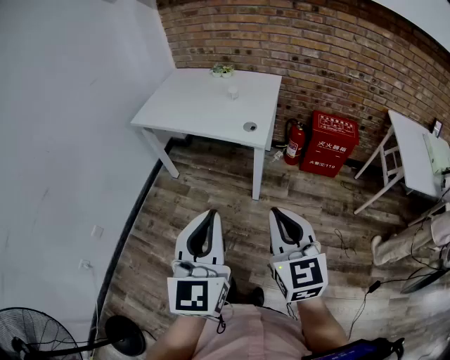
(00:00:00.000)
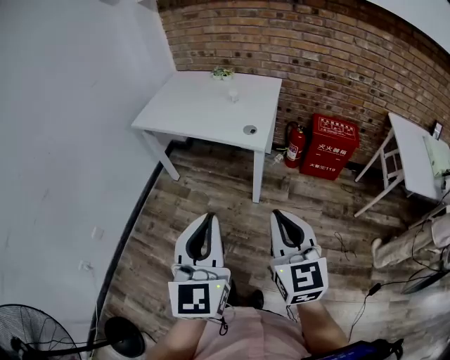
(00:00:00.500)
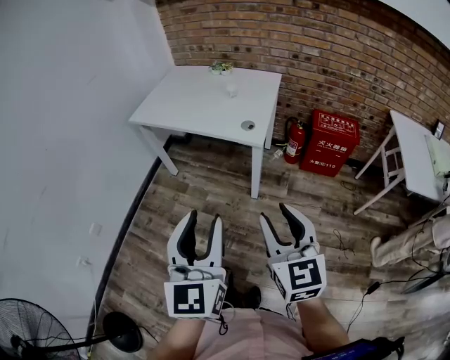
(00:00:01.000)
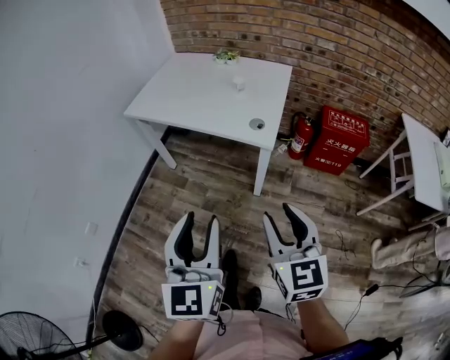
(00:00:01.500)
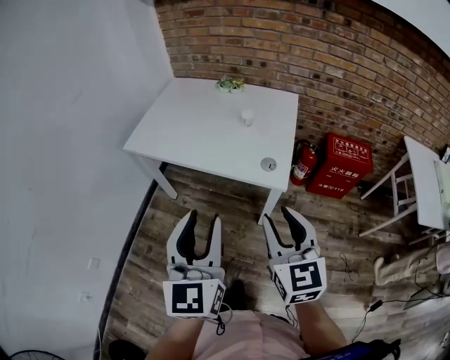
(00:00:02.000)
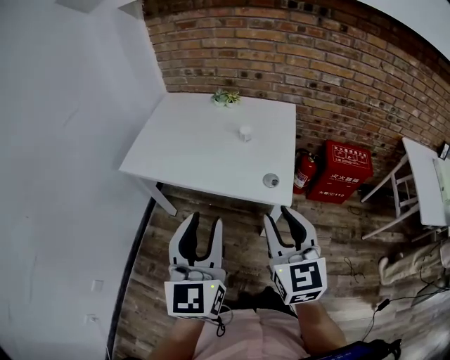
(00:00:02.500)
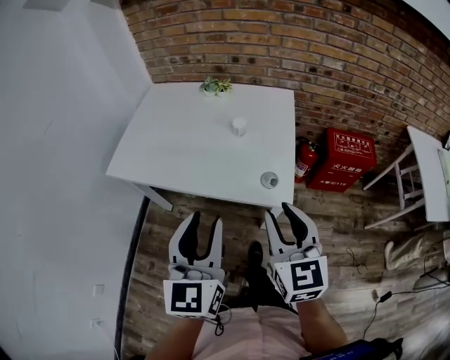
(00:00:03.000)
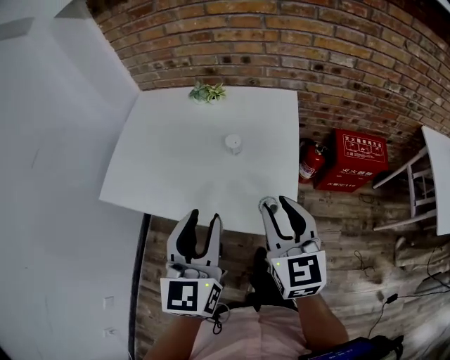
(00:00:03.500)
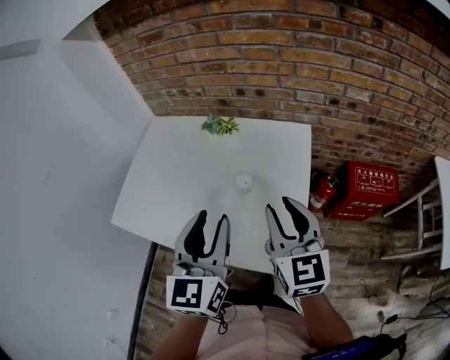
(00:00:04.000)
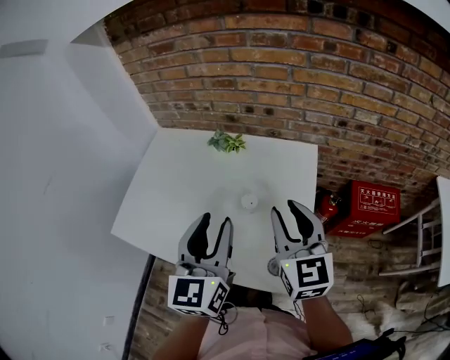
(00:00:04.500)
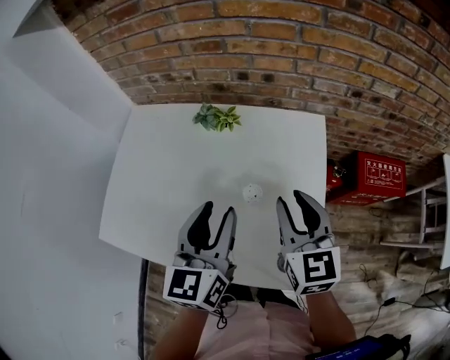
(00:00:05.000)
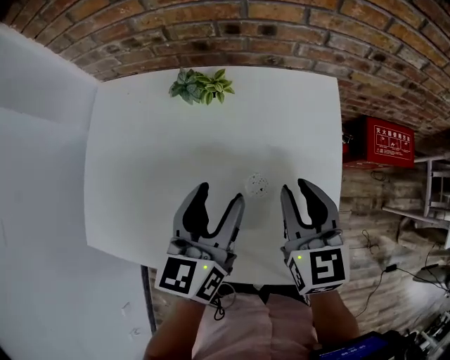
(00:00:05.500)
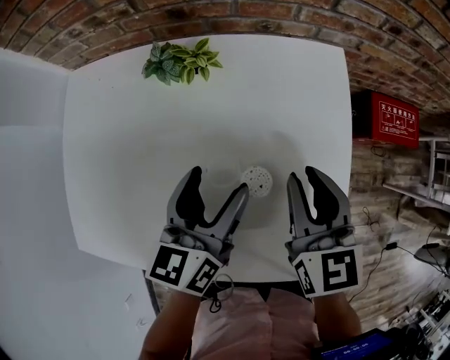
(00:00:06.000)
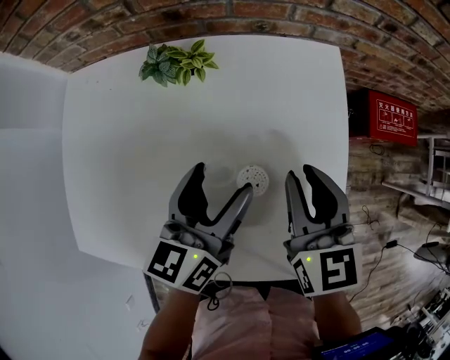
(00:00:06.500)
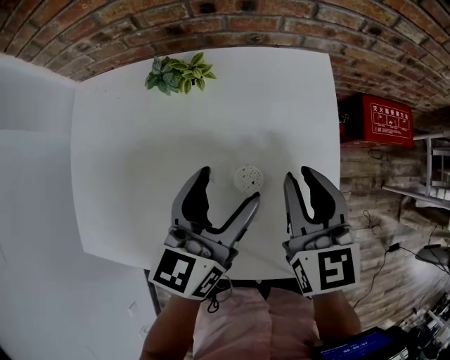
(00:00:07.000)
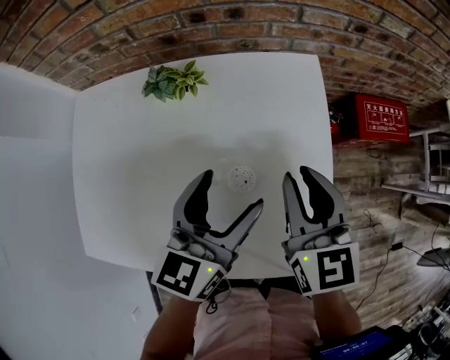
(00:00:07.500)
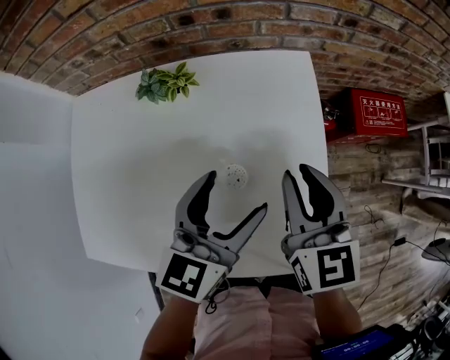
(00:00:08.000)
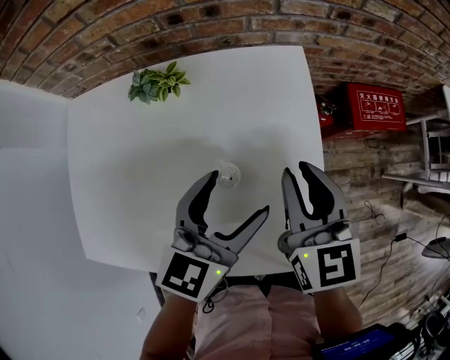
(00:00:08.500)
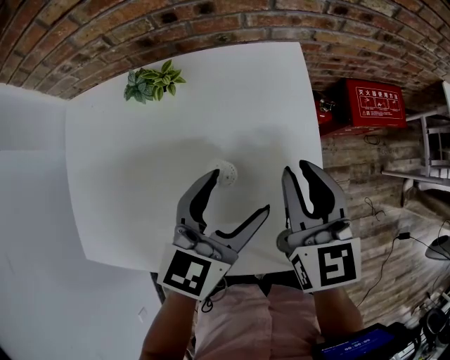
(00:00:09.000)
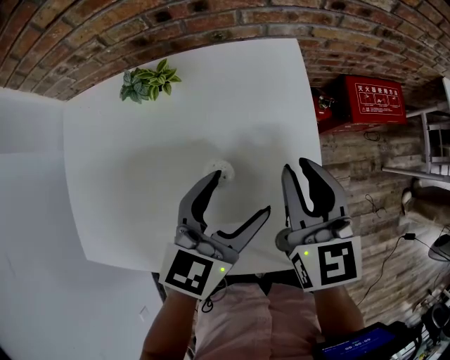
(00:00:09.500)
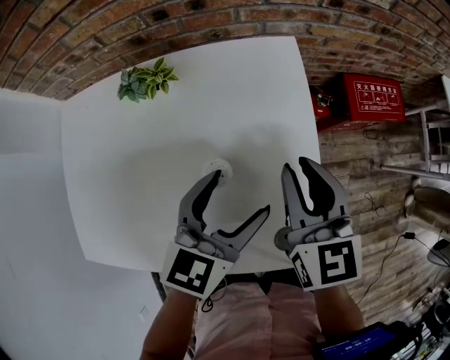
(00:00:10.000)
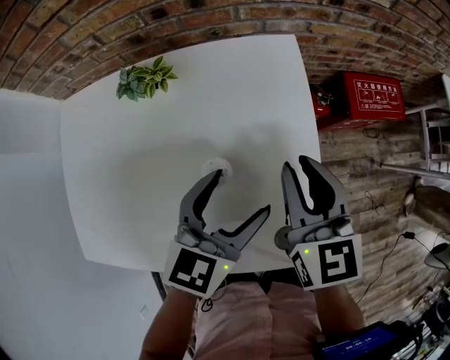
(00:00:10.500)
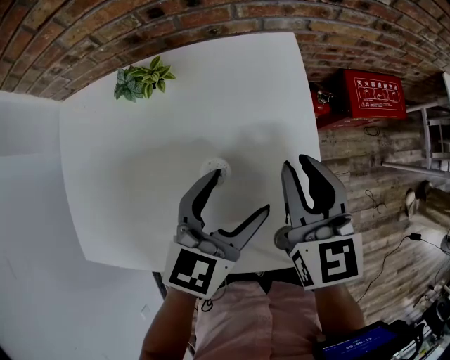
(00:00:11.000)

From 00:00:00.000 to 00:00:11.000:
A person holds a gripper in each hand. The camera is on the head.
From 00:00:00.000 to 00:00:02.000: Both grippers travel together forward, approximately 25 cm. The right gripper opens up, while the left gripper opens up.
From 00:00:02.000 to 00:00:03.500: Both grippers move forward, approximately 25 cm.
From 00:00:03.500 to 00:00:05.500: The right gripper moves forward, about 25 cm. Meanwhile the left gripper travels forward and downward by some 30 cm, and rotates some 20 degrees.
From 00:00:05.500 to 00:00:07.500: The left gripper is displaced to the right by approximately 5 cm.
From 00:00:07.500 to 00:00:09.000: The left gripper heads to the right, covering approximately 5 cm.
From 00:00:09.000 to 00:00:11.000: There are only small adjustments of the grippers.

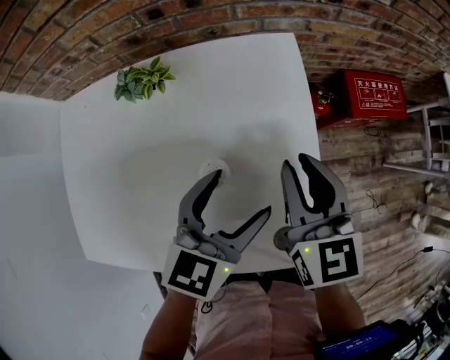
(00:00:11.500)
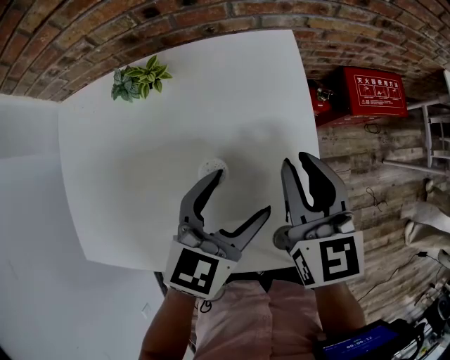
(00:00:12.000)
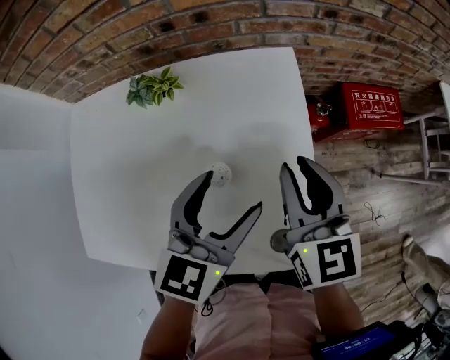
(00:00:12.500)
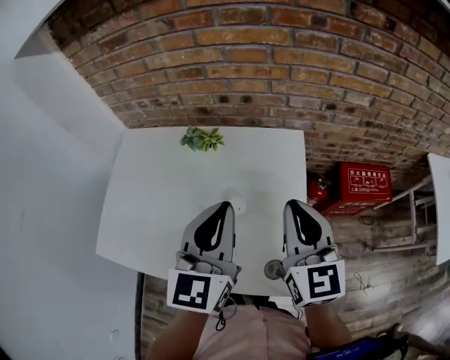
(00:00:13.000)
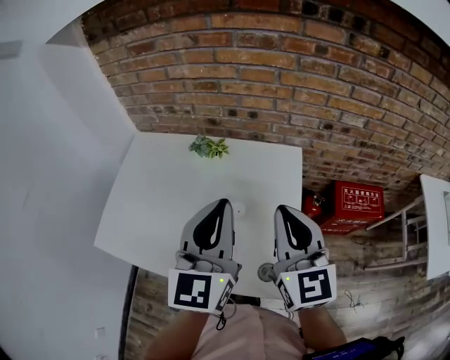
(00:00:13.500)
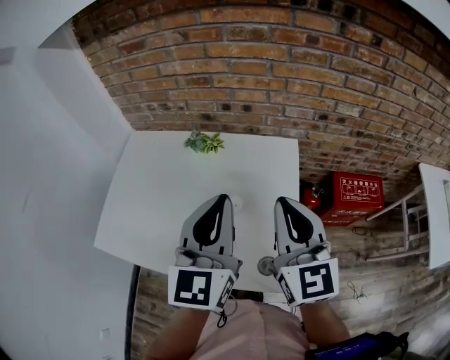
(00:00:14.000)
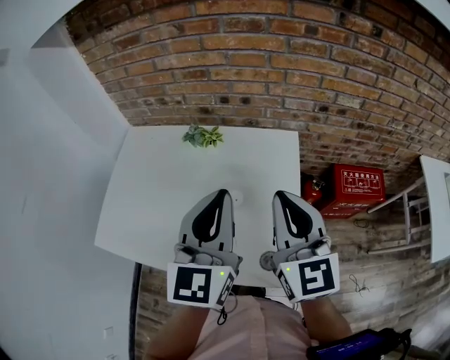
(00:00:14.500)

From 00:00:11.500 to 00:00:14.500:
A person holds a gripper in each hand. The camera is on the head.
From 00:00:11.500 to 00:00:13.000: The grippers both shift upward by roughly 15 cm. The left gripper rotates some 40 degrees, and closes up.
From 00:00:13.000 to 00:00:14.500: The right gripper travels upward by about 5 cm. Meanwhile the left gripper changes place by about 5 cm.

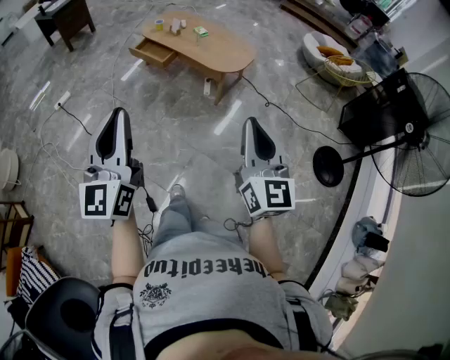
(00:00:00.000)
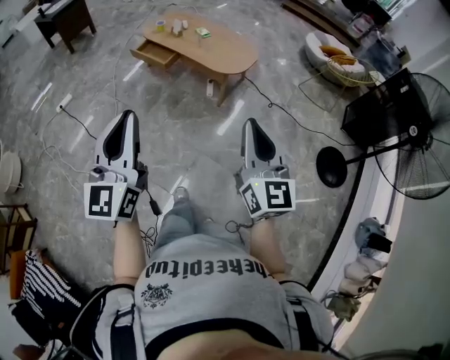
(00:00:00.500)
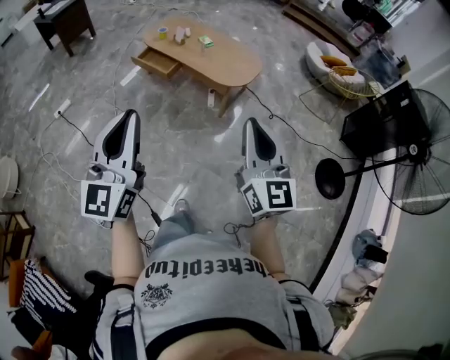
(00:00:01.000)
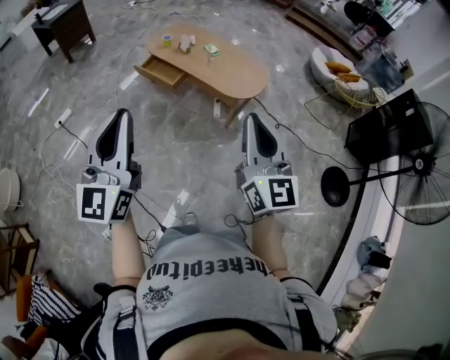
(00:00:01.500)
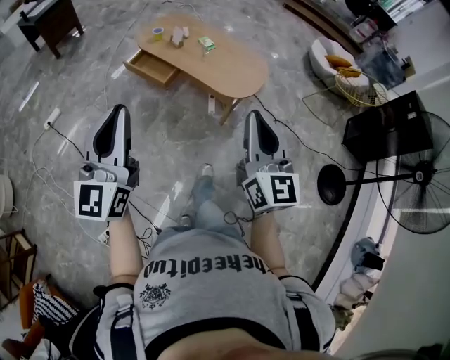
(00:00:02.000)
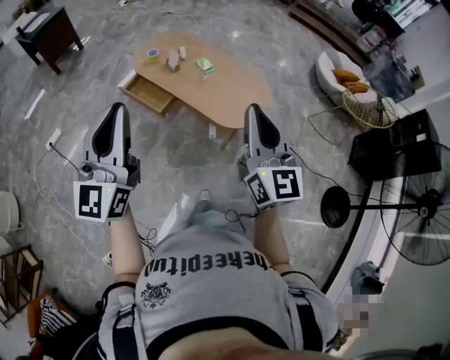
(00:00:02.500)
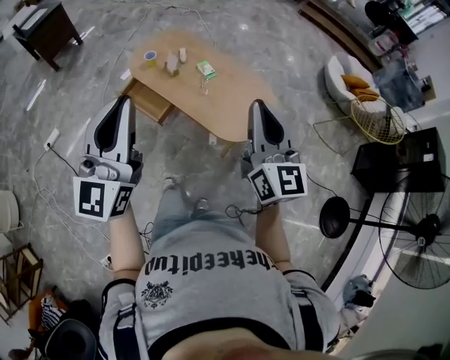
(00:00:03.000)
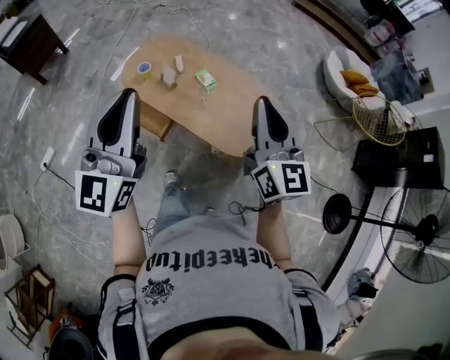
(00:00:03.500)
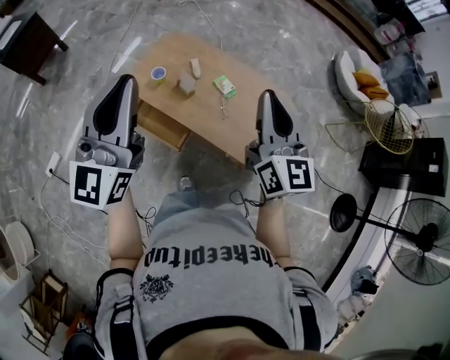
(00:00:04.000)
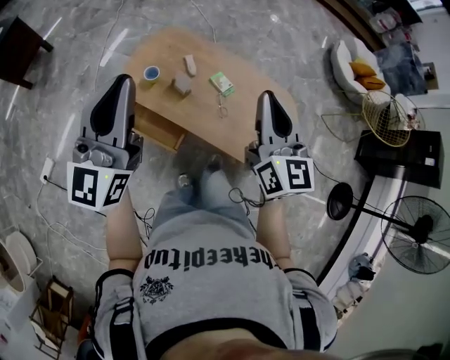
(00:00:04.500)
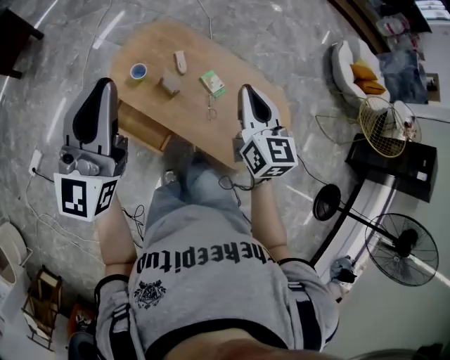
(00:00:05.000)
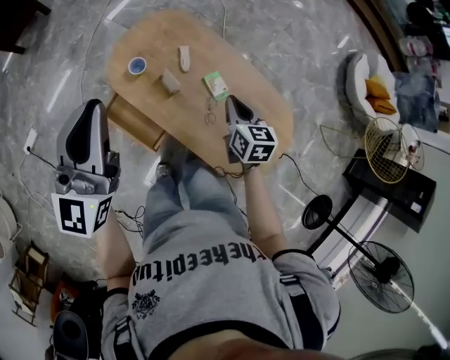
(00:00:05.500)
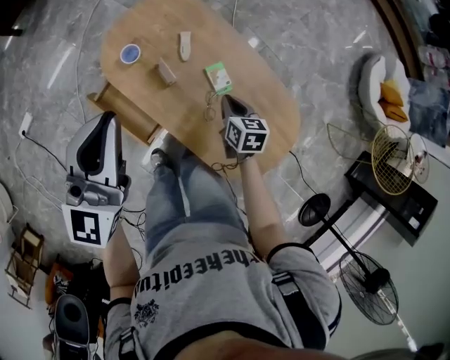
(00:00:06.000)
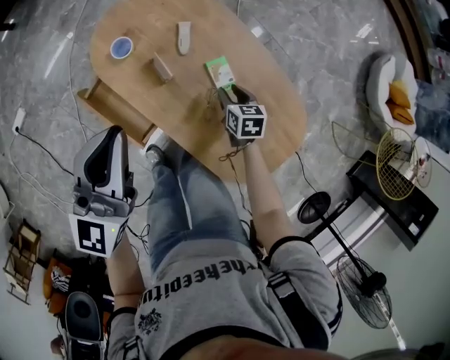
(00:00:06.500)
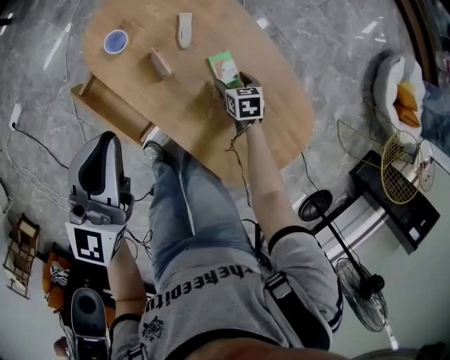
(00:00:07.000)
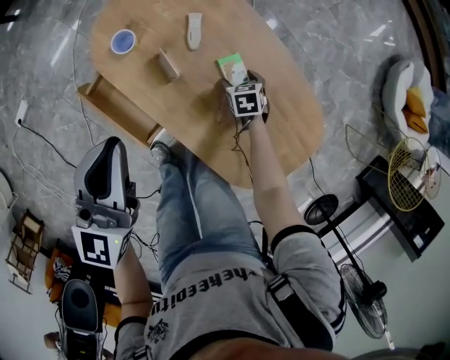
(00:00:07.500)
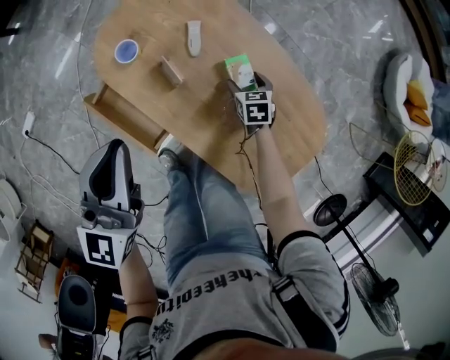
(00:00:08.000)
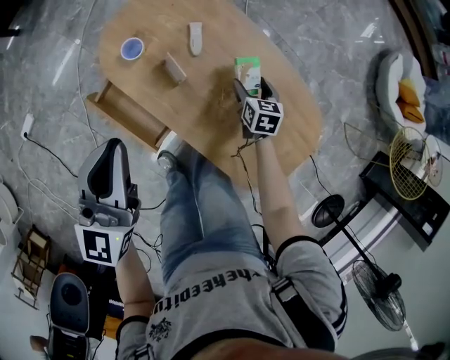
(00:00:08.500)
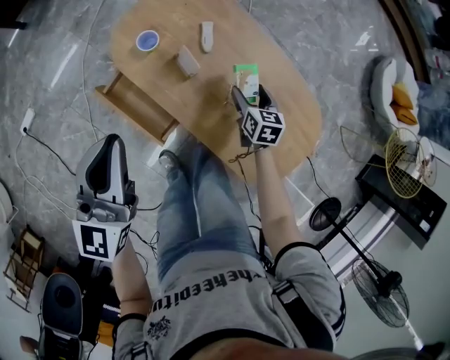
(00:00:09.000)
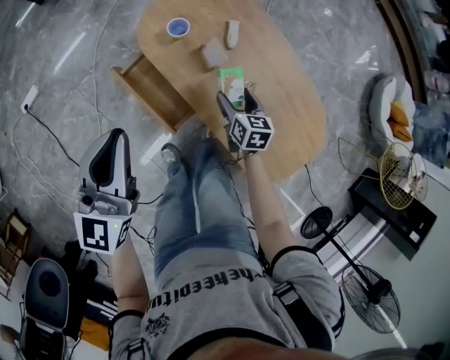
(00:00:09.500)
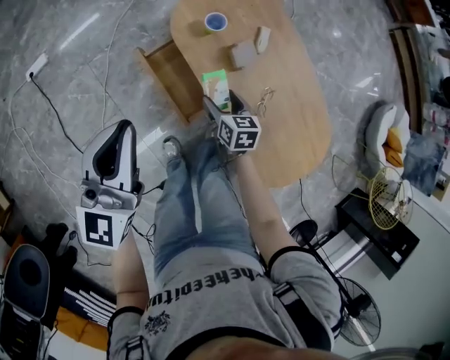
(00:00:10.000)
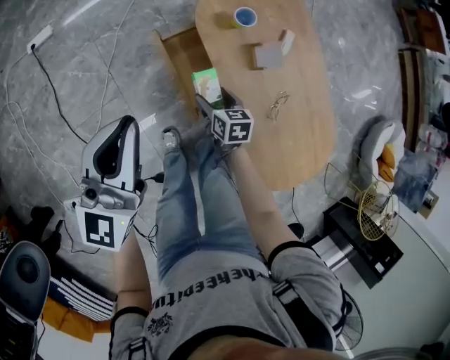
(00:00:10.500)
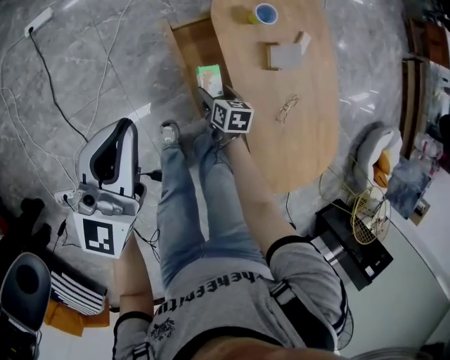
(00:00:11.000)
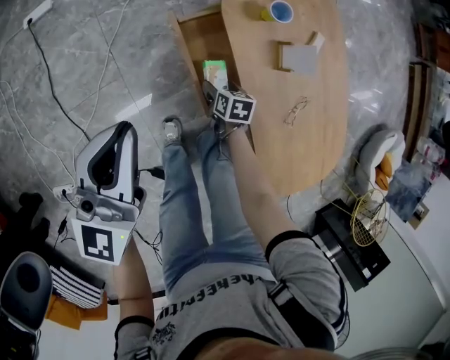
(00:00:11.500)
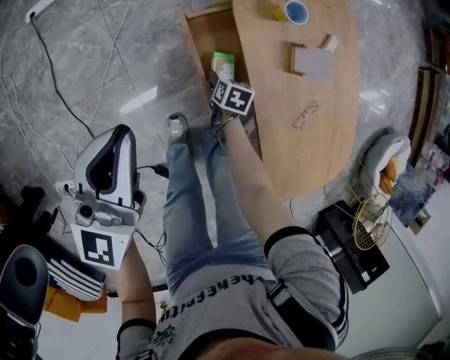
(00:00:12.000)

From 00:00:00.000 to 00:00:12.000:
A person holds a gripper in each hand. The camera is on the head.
From 00:00:00.000 to 00:00:02.000: The two grippers go about 30 cm forward.
From 00:00:02.000 to 00:00:04.000: The pair of grippers is taken forward, approximately 60 cm.
From 00:00:04.000 to 00:00:06.000: The right gripper heads downward and forward, covering roughly 50 cm, and points its fingers roughly 50 degrees further downward; the left gripper heads forward and downward, covering about 30 cm.
From 00:00:06.000 to 00:00:08.000: The left gripper goes some 10 cm downward. Meanwhile the right gripper moves downward and forward, some 20 cm, changes its angle by roughly 20 degrees, and opens its fingers.
From 00:00:08.000 to 00:00:10.000: Both grippers travel together to the left and backward, roughly 30 cm. The right gripper rotates approximately 20 degrees.
From 00:00:10.000 to 00:00:12.000: The left gripper is displaced downward and to the left by approximately 20 cm. The right gripper heads downward, covering roughly 25 cm, and rotates approximately 20 degrees.
